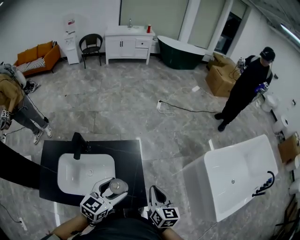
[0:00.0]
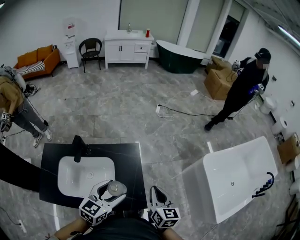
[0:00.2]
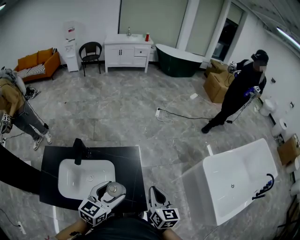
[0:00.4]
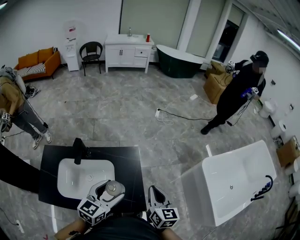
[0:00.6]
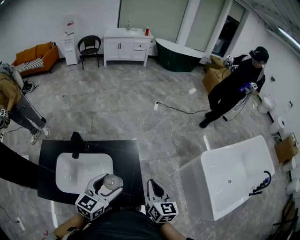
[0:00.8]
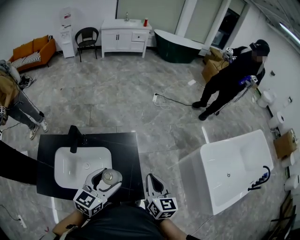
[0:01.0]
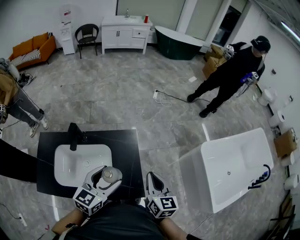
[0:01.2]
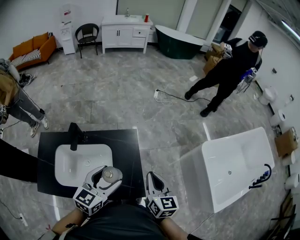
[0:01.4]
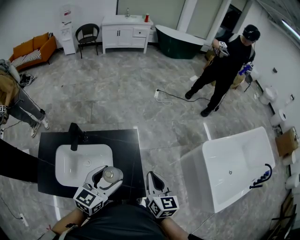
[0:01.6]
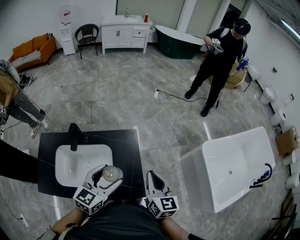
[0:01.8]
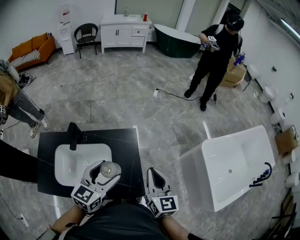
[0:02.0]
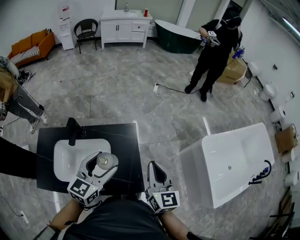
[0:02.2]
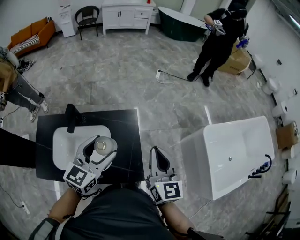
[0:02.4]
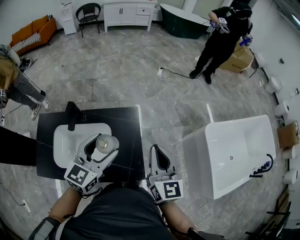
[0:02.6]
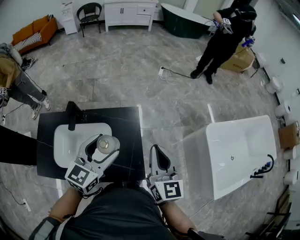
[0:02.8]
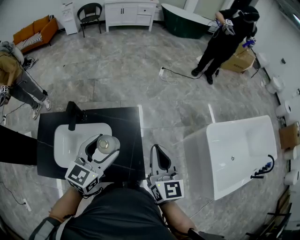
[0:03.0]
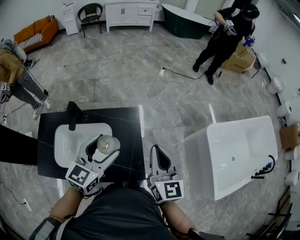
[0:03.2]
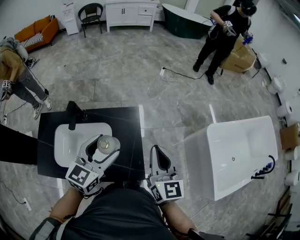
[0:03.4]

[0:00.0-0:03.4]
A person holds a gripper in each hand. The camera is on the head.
0:00.0 to 0:01.6: The grippers make only small movements.
0:01.6 to 0:03.4: The left gripper ends up some 5 cm from where it was; the right gripper goes some 5 cm upward.

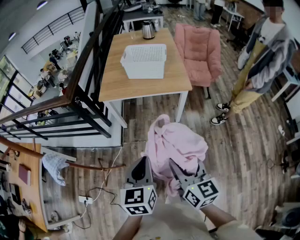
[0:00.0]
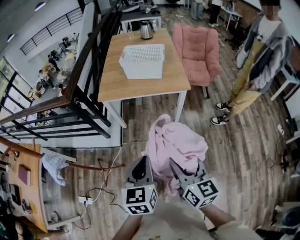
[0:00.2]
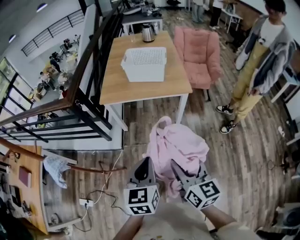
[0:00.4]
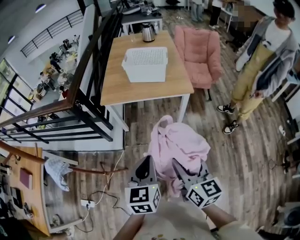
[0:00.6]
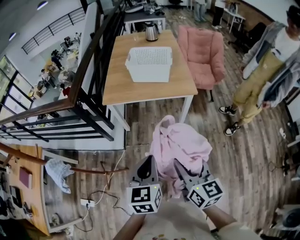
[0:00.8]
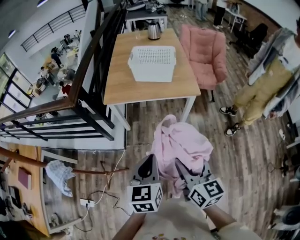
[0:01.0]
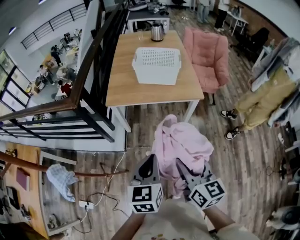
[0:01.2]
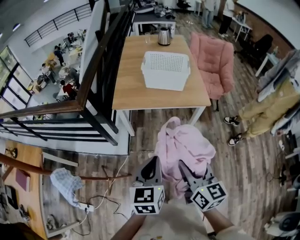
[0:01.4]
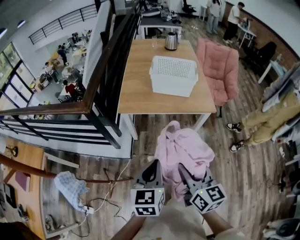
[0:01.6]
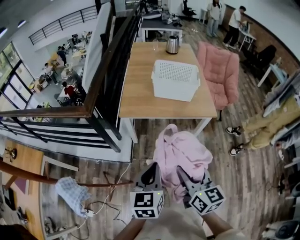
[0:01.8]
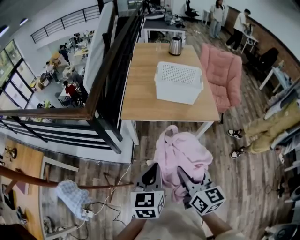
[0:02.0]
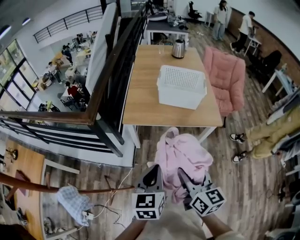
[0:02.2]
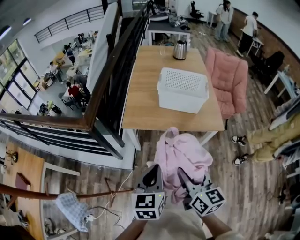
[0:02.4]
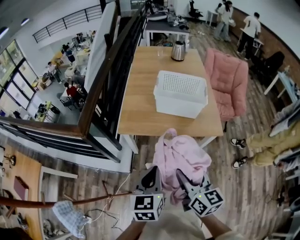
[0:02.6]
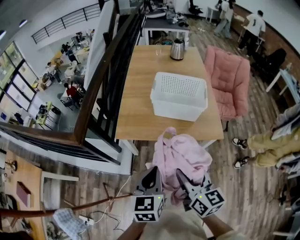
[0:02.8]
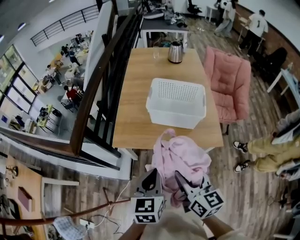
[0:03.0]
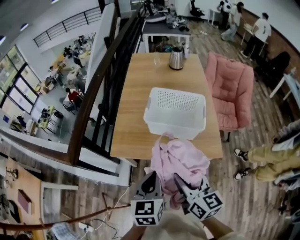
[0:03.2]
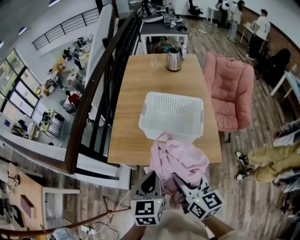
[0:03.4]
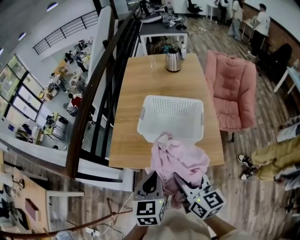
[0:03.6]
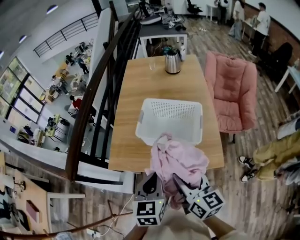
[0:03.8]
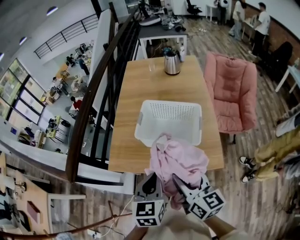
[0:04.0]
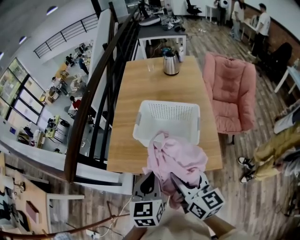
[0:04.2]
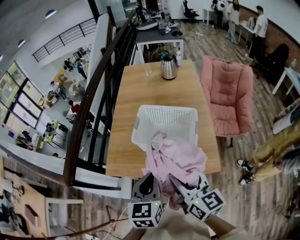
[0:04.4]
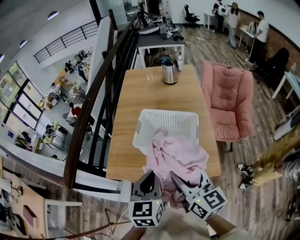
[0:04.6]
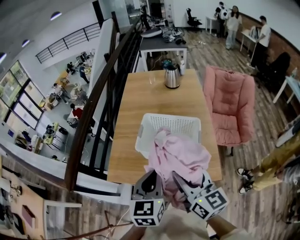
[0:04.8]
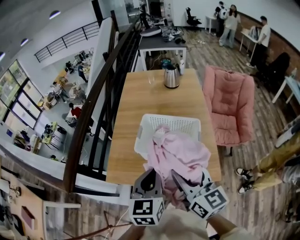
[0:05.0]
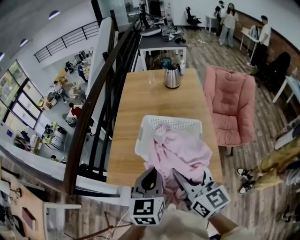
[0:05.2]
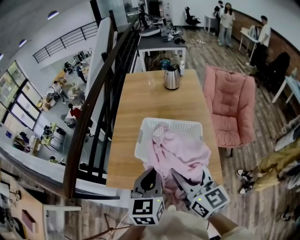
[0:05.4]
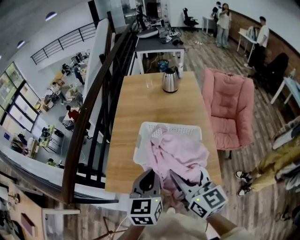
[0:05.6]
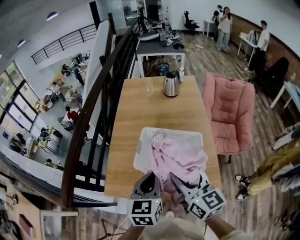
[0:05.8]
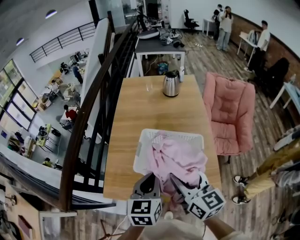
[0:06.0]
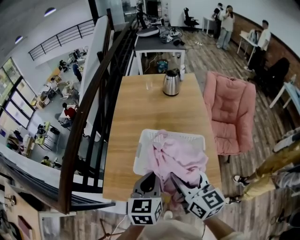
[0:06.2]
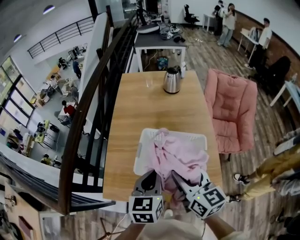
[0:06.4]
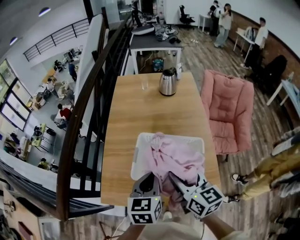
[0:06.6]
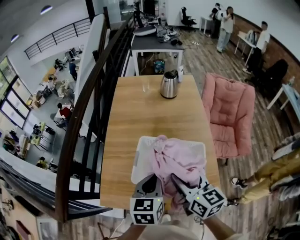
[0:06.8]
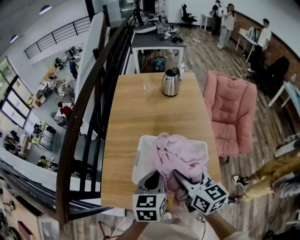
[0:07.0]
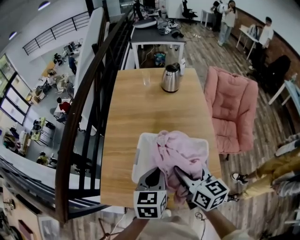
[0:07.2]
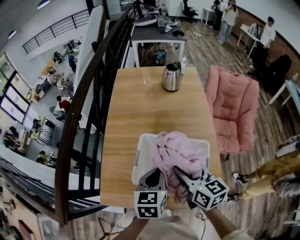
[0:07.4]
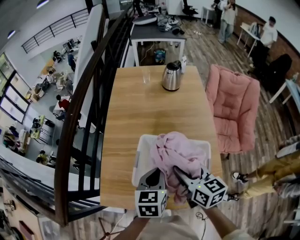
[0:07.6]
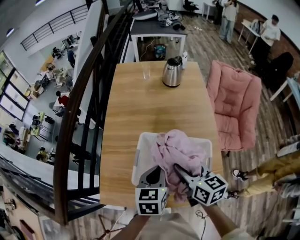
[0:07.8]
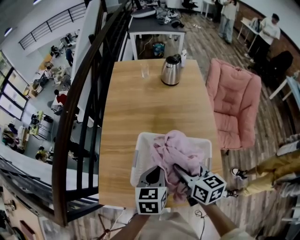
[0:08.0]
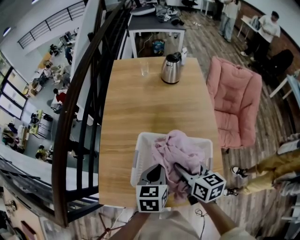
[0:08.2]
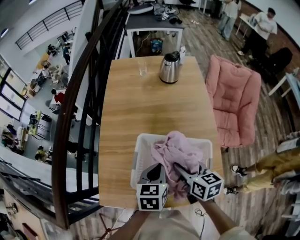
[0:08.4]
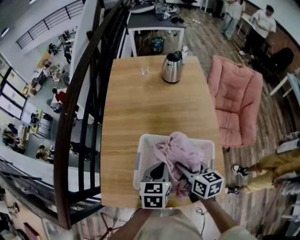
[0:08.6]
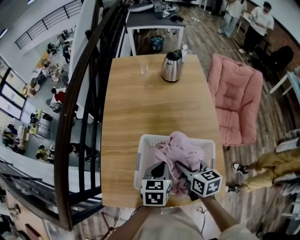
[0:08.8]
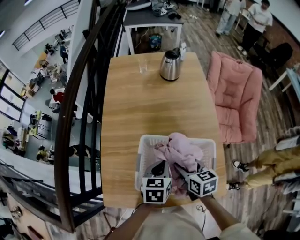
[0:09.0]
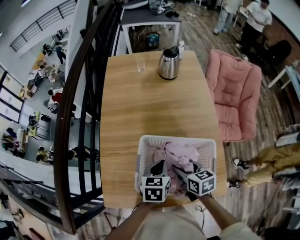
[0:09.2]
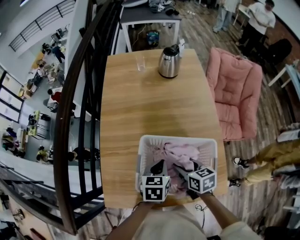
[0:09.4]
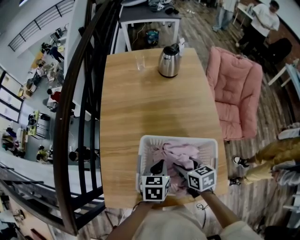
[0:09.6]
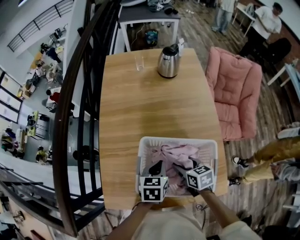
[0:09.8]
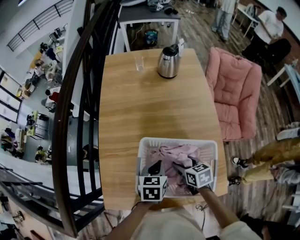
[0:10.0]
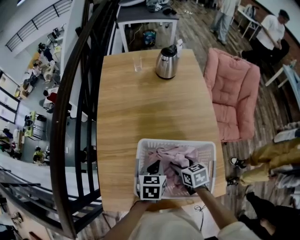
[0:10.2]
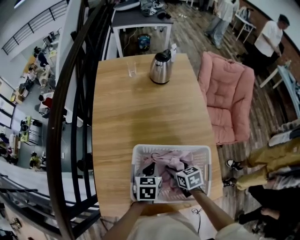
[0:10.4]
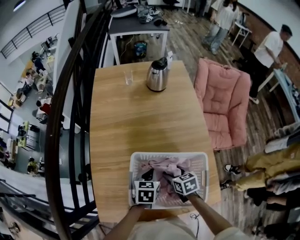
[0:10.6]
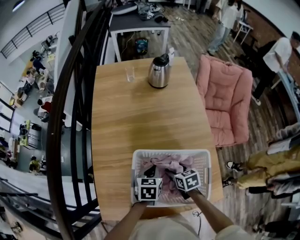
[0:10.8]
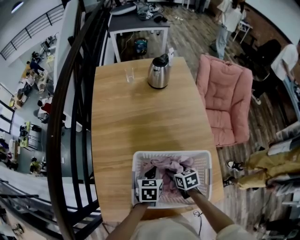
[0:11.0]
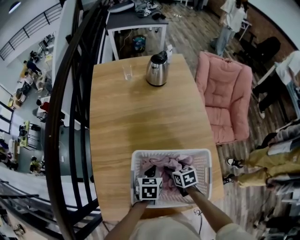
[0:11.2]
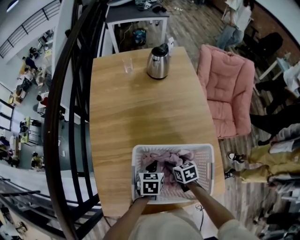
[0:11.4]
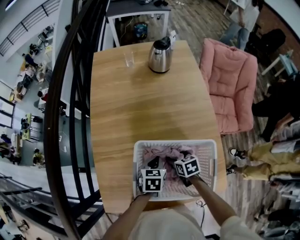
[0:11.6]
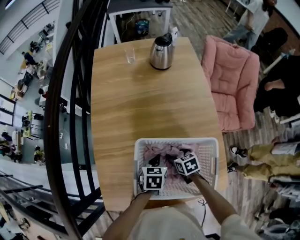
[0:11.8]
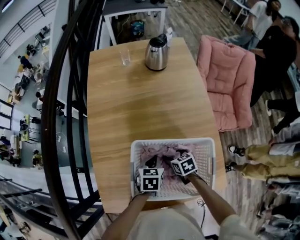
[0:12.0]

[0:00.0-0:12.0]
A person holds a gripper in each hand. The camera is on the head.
0:00.0 to 0:01.6: The right gripper heads to the left and forward, covering approximately 15 cm; the left gripper is displaced forward and to the left by about 15 cm.
0:01.6 to 0:03.0: Both grippers travel together forward, about 25 cm.
0:03.0 to 0:04.4: Both grippers travel together forward and to the right, about 15 cm.
0:04.4 to 0:06.0: Both grippers travel together forward, about 15 cm.
0:06.0 to 0:07.6: The grippers both shift forward and downward by roughly 15 cm.
0:07.6 to 0:09.0: The left gripper moves downward, some 5 cm, while the right gripper heads downward, covering roughly 10 cm.
0:09.0 to 0:10.4: The left gripper shifts about 5 cm downward. The right gripper goes approximately 10 cm downward.
0:10.4 to 0:12.0: The two grippers go about 5 cm downward.

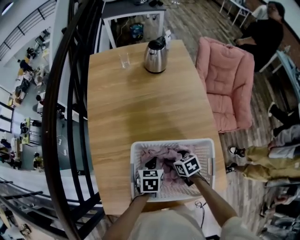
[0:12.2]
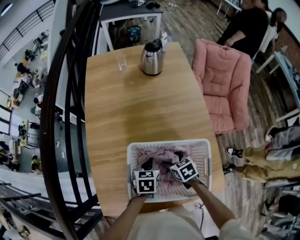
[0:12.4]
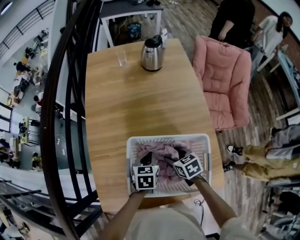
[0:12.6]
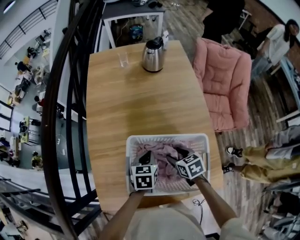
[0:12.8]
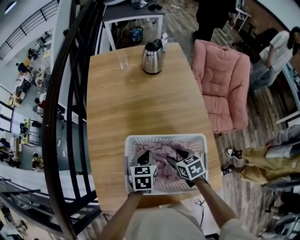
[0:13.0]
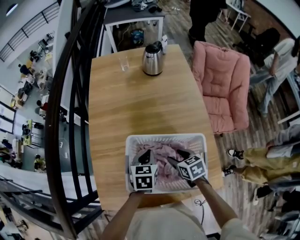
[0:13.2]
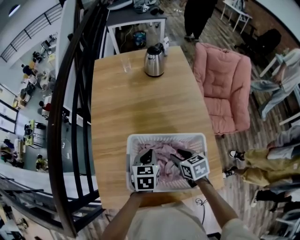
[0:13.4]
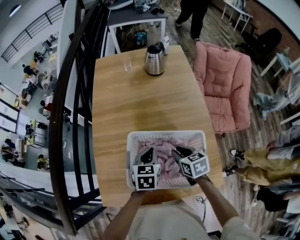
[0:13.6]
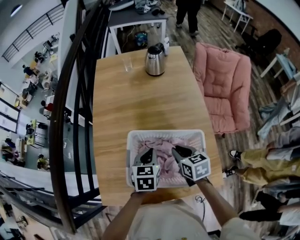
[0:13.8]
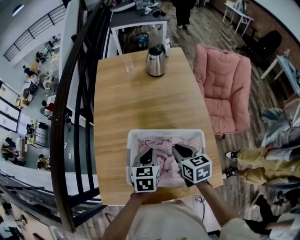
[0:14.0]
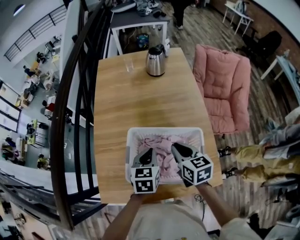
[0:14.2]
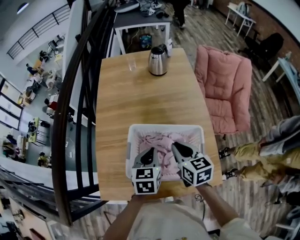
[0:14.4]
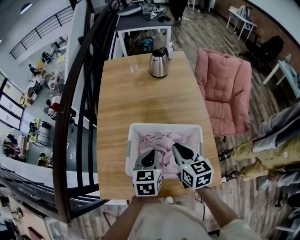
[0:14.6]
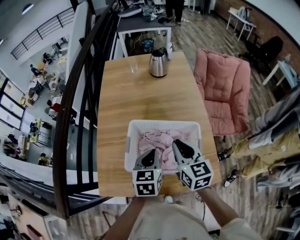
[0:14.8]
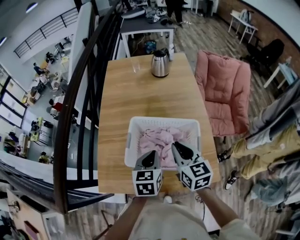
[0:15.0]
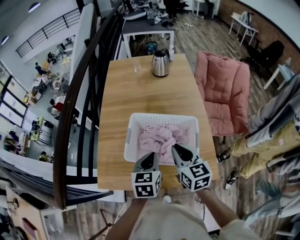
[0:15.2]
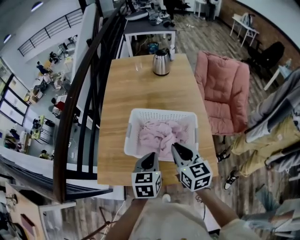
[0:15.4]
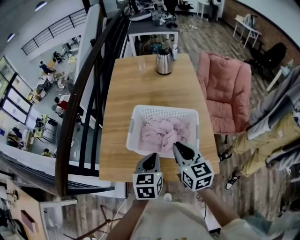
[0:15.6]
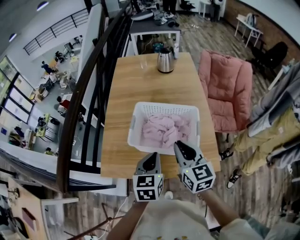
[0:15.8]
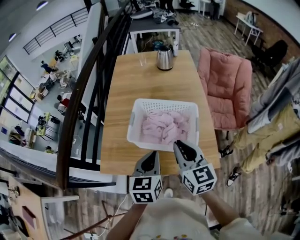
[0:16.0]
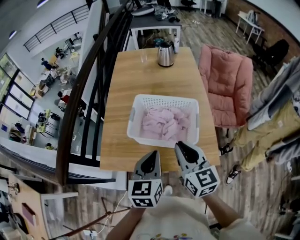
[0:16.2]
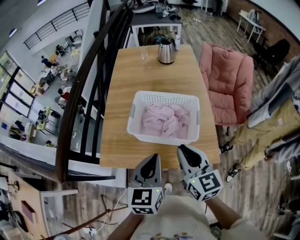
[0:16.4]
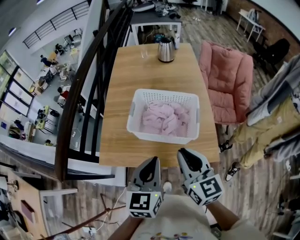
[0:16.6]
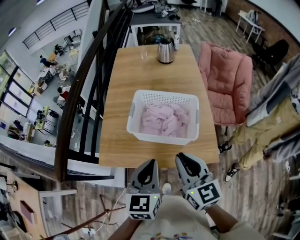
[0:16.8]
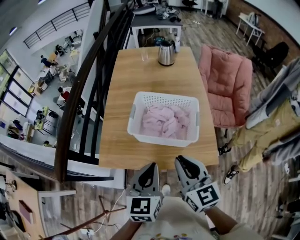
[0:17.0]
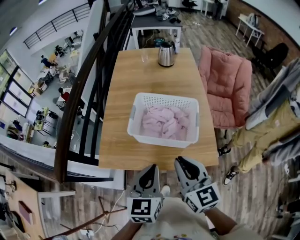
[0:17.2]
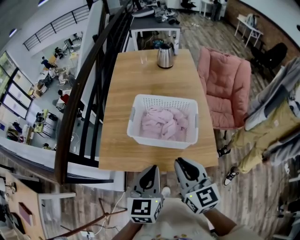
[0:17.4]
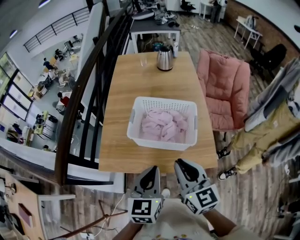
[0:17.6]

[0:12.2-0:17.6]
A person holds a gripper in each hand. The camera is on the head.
0:12.2 to 0:13.6: Both grippers move upward, roughly 10 cm. The right gripper closes up.
0:13.6 to 0:15.0: The right gripper shifts approximately 15 cm upward and backward, and turns by some 30 degrees, while the left gripper travels backward and upward by roughly 10 cm.
0:15.0 to 0:16.2: The right gripper heads backward, covering about 15 cm; the left gripper travels backward and upward by approximately 15 cm.
0:16.2 to 0:17.6: The grippers both shift backward by about 5 cm.

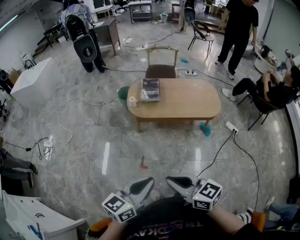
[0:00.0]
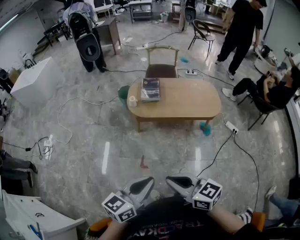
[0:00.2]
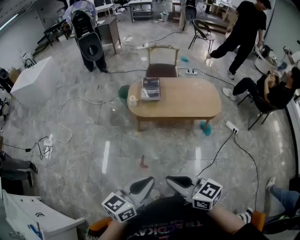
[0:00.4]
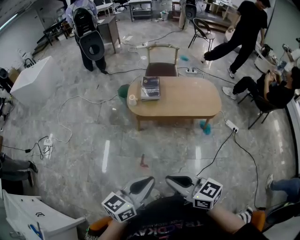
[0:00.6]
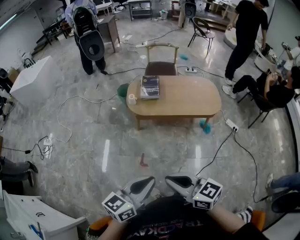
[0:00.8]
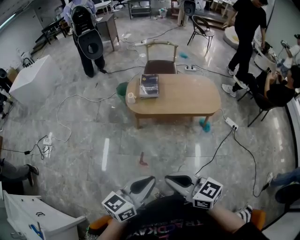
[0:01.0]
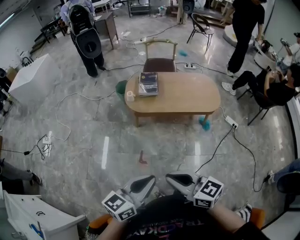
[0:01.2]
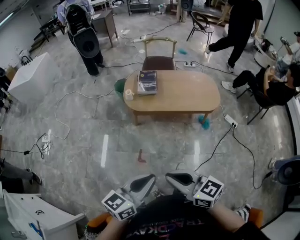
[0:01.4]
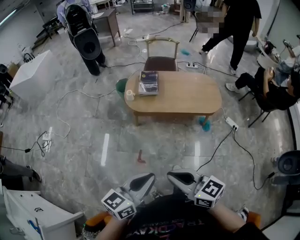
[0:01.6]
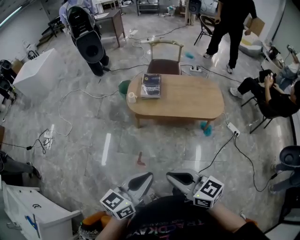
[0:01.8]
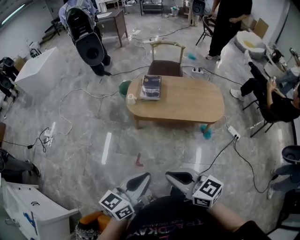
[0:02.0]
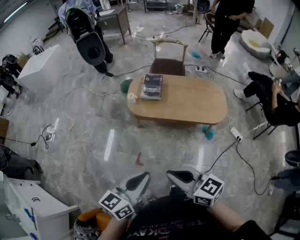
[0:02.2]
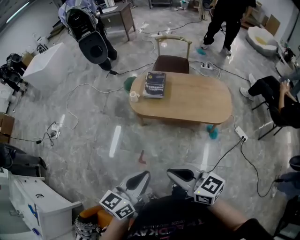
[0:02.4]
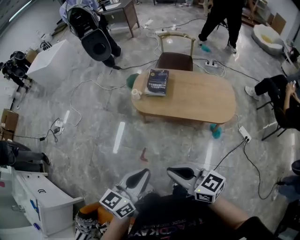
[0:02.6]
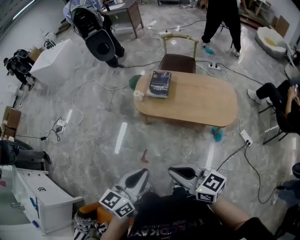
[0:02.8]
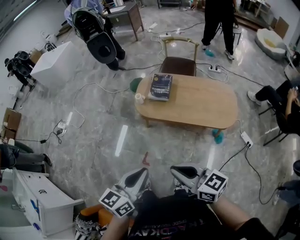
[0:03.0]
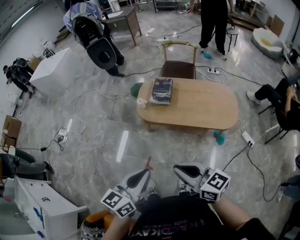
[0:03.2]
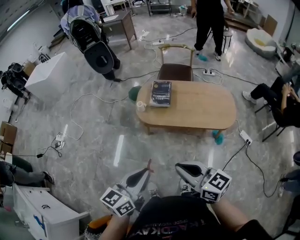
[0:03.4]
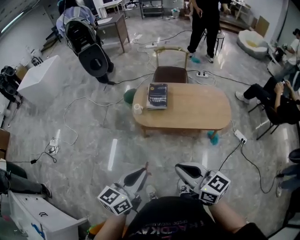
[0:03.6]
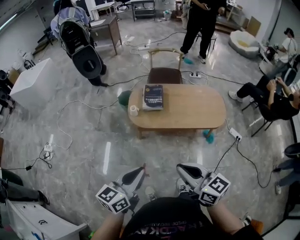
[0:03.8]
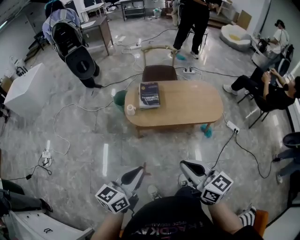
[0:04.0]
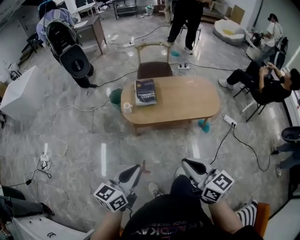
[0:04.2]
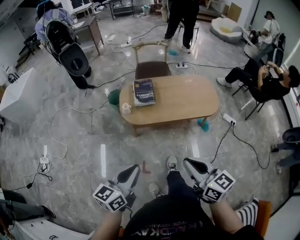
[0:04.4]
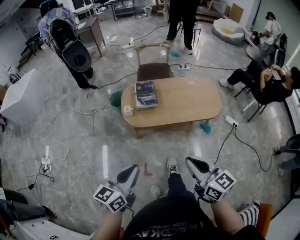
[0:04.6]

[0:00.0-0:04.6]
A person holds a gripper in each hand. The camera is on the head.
0:00.0 to 0:01.6: There are only small adjustments of the grippers.
0:01.6 to 0:03.0: The left gripper goes approximately 15 cm forward and to the right, and swivels some 20 degrees. The right gripper shifts some 20 cm to the right and forward.
0:03.0 to 0:04.6: The left gripper moves about 20 cm, while the right gripper ends up about 10 cm from where it was, and changes its angle by about 40 degrees.
